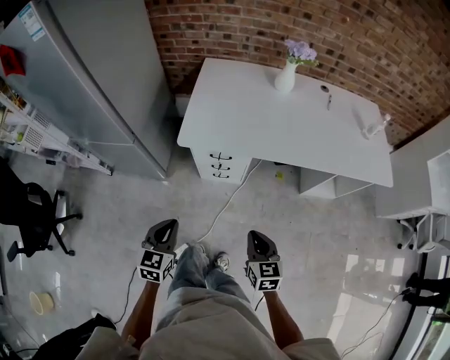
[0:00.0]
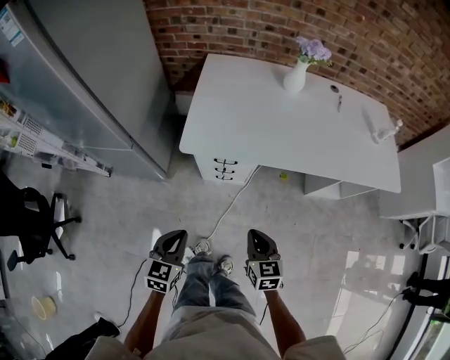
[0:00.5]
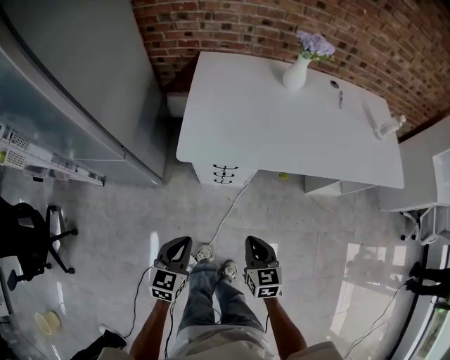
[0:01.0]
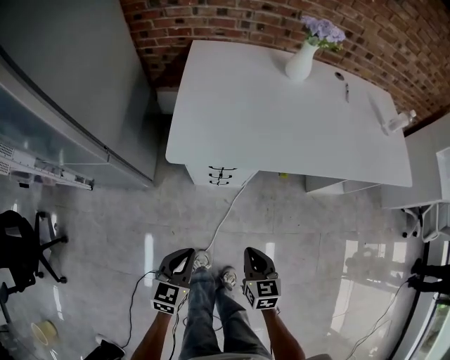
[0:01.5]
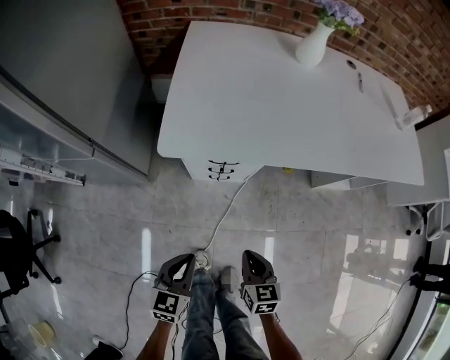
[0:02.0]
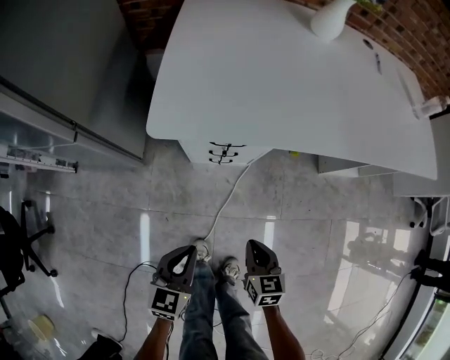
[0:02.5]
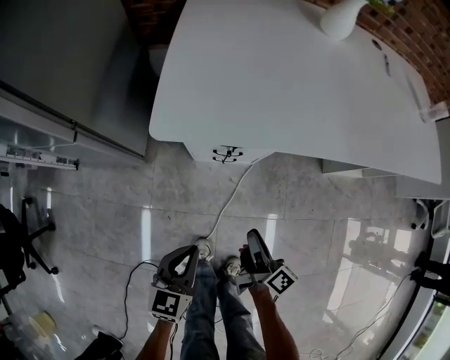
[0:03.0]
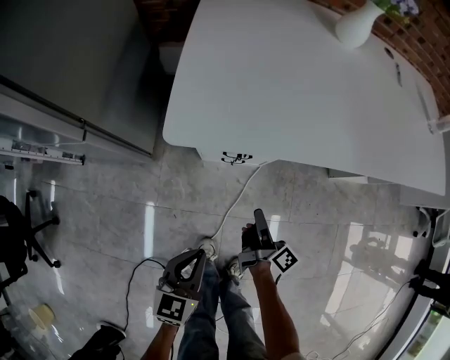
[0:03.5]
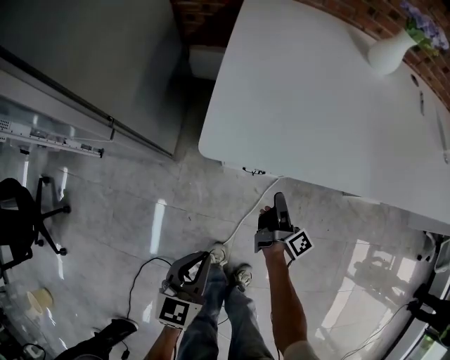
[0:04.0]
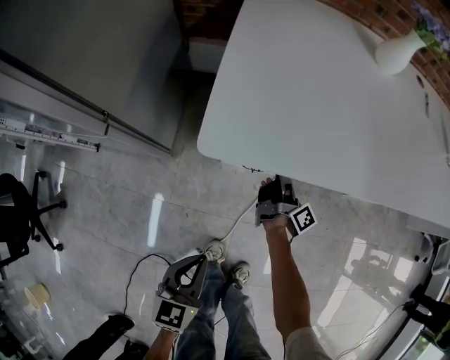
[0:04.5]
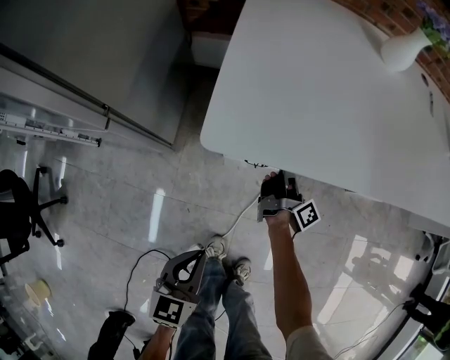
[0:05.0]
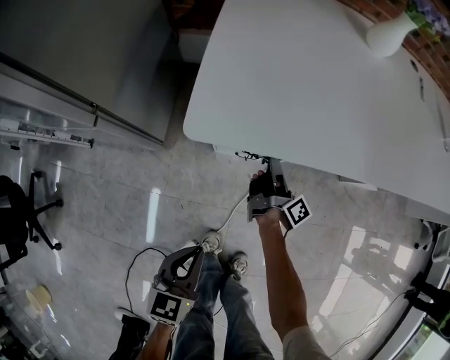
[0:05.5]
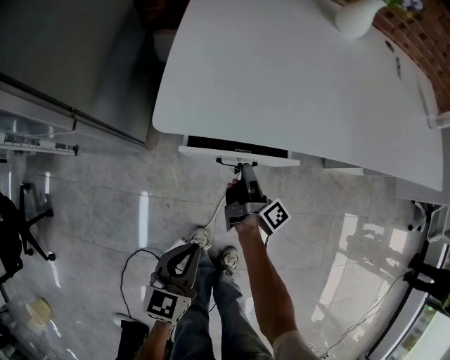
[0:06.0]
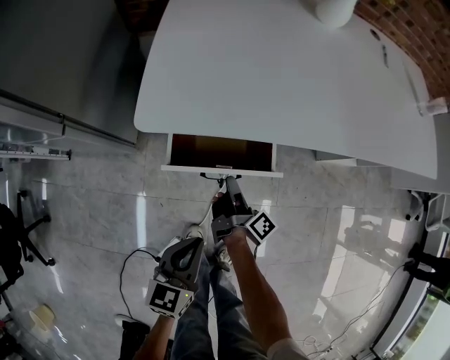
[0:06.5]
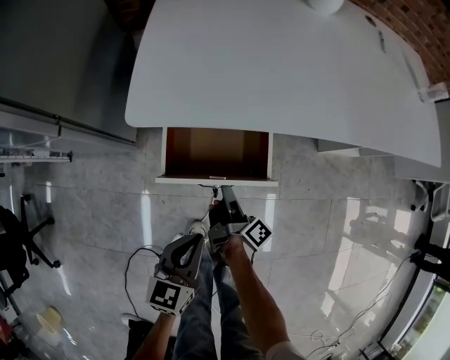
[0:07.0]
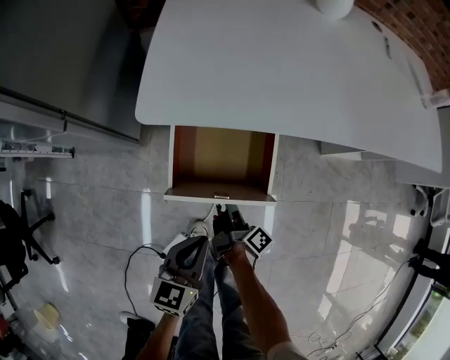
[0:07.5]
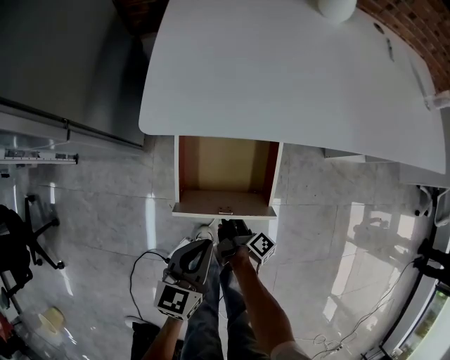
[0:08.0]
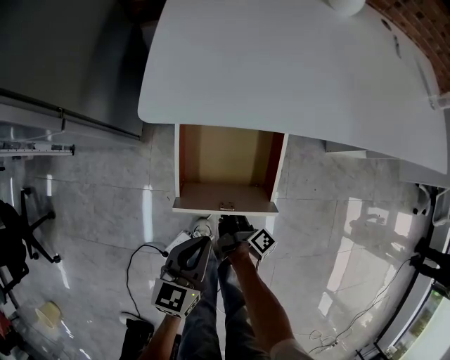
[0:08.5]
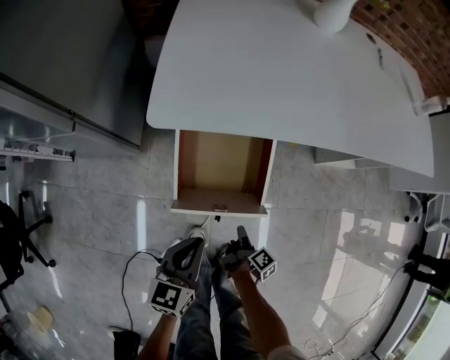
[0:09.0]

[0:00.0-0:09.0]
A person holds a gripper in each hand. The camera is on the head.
0:00.0 to 0:02.0: Both grippers travel together downward, about 20 cm.
0:02.0 to 0:04.5: The right gripper travels forward by roughly 30 cm, rotates around the line of its fingers by roughly 70 degrees, clockwise from behind, and opens up. The left gripper is displaced to the left by approximately 5 cm.
0:04.5 to 0:07.0: The right gripper heads backward, covering about 15 cm, and closes; the left gripper shifts roughly 10 cm to the right.
0:07.0 to 0:09.0: The right gripper is displaced backward, downward and to the right by about 20 cm, turns by about 30 degrees, and opens its fingers.

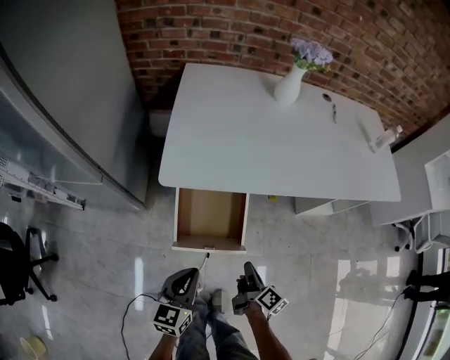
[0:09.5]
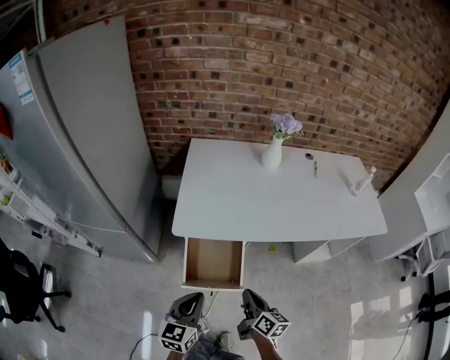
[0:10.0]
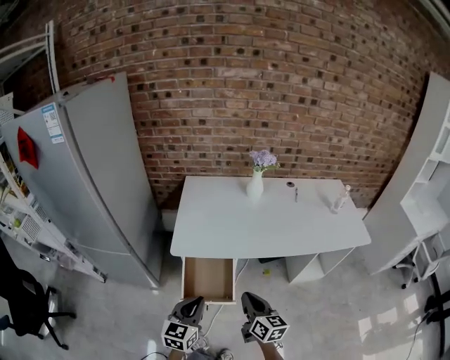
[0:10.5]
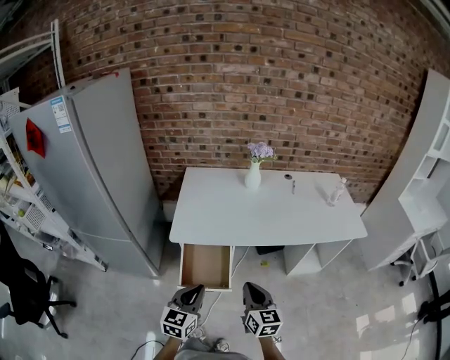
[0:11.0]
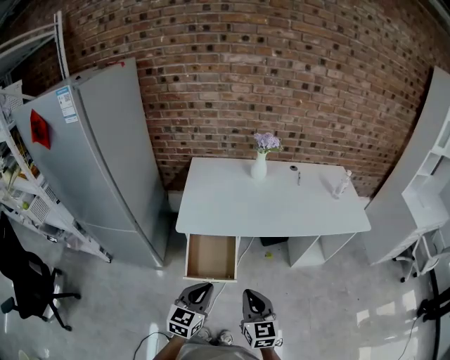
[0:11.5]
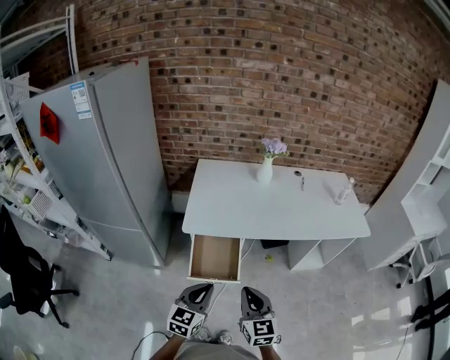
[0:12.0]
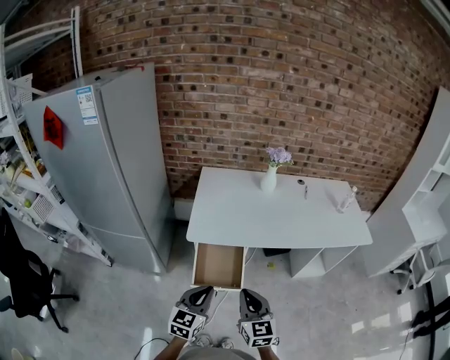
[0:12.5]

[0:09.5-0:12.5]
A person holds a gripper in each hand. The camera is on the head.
0:09.5 to 0:11.0: Both grippers move upward, approximately 25 cm. The right gripper rotates around the line of its fingers by some 60 degrees, counterclockwise from behind.
0:11.0 to 0:12.5: The right gripper shifts roughly 10 cm to the left. Meanwhile the left gripper ends up about 5 cm from where it was.

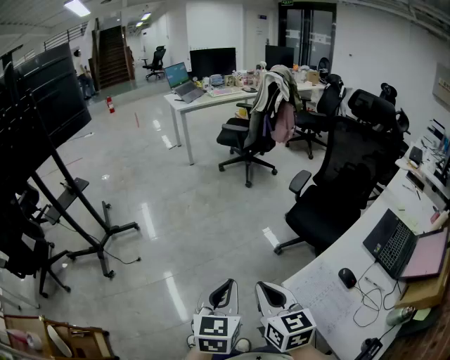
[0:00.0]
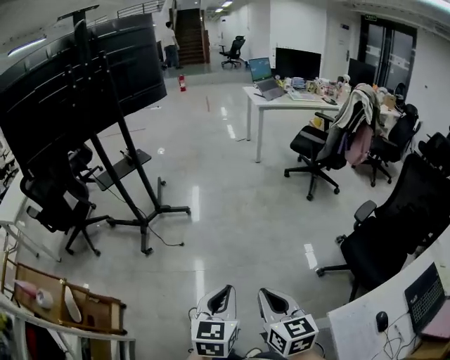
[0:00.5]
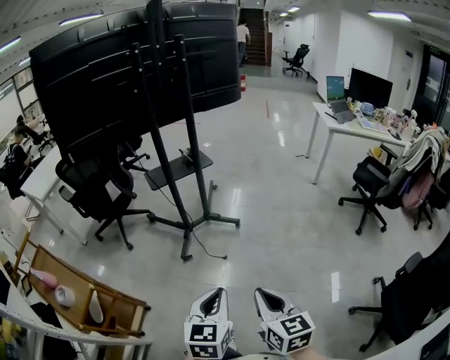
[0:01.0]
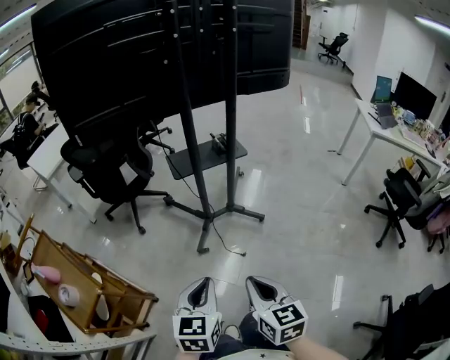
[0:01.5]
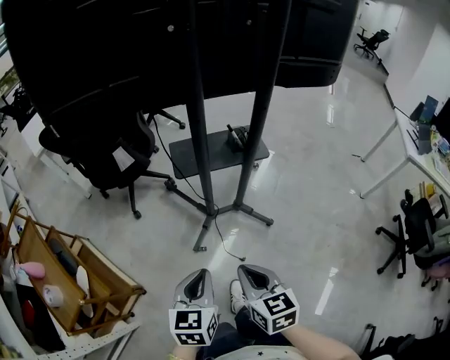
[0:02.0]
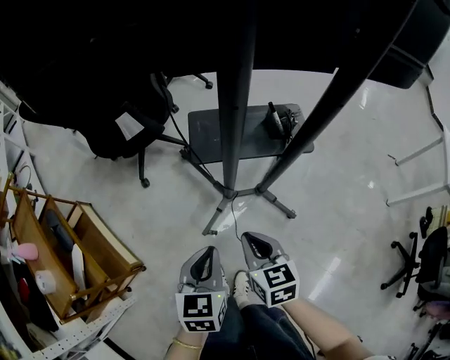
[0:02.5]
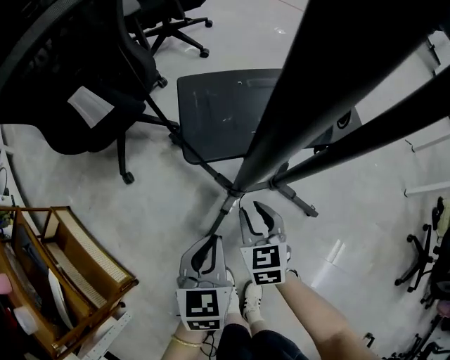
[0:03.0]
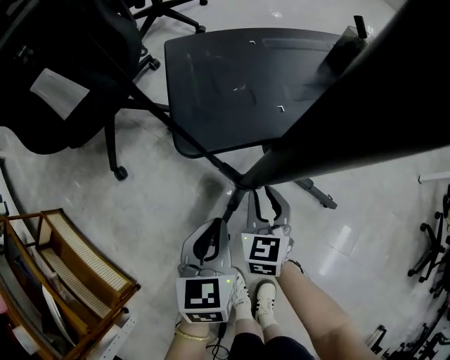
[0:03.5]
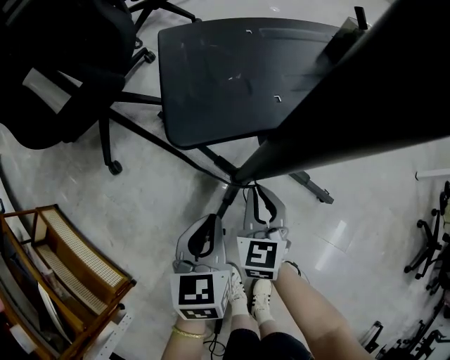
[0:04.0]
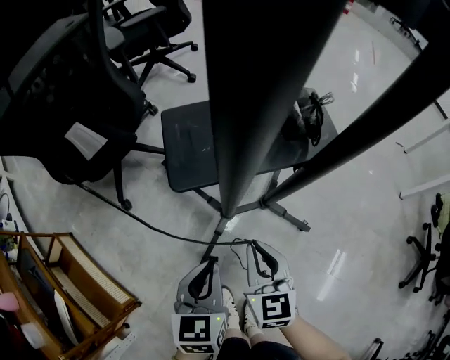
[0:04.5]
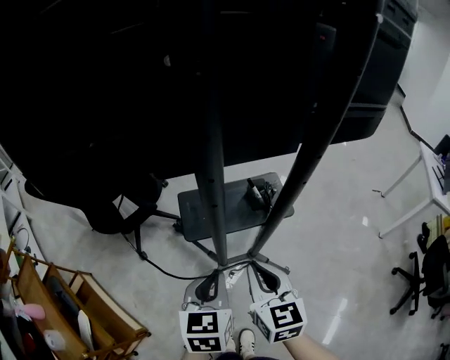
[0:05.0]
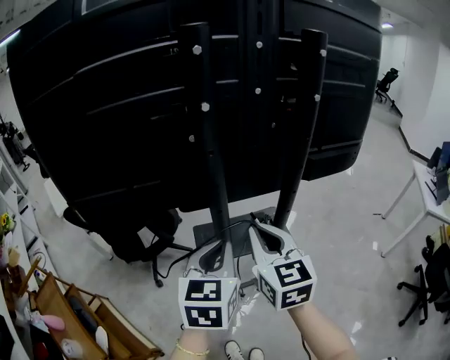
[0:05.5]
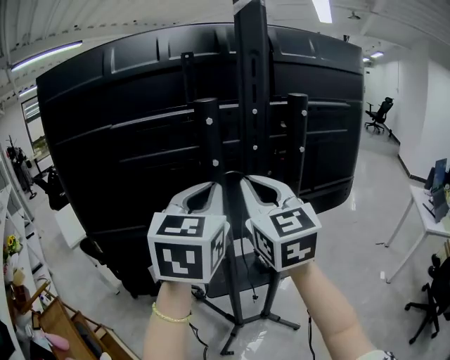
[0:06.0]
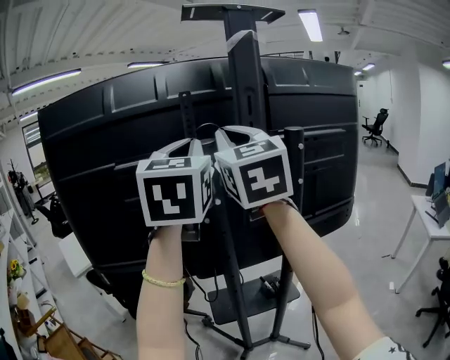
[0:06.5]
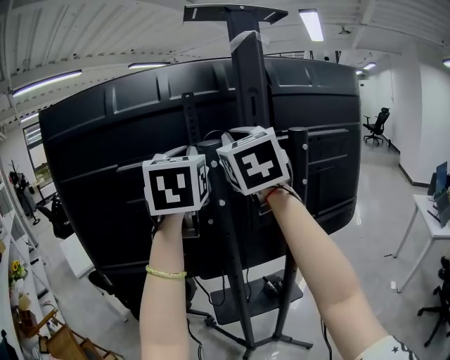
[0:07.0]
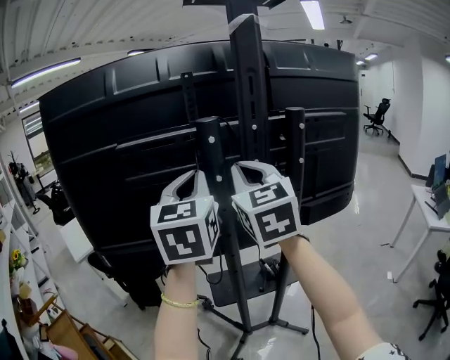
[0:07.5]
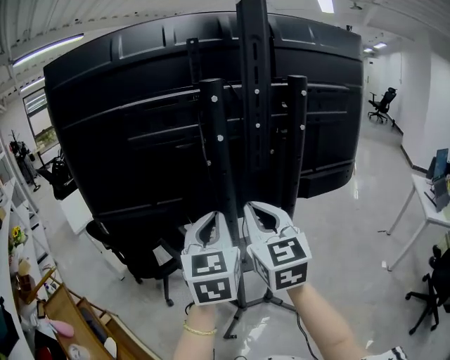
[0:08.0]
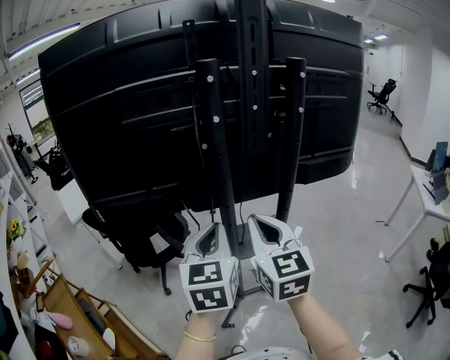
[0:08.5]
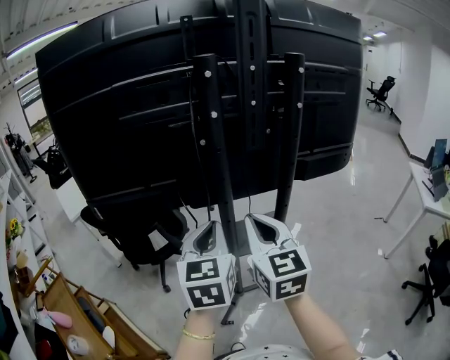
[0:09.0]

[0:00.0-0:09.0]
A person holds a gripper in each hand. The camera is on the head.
0:00.0 to 0:02.0: The pair of grippers is taken roughly 90 cm. The right gripper changes its angle by roughly 60 degrees; the left gripper swivels about 60 degrees.
0:02.0 to 0:04.5: The two grippers go about 35 cm forward and downward. The right gripper opens, then closes once more.
0:04.5 to 0:07.0: The grippers both shift upward by some 90 cm. The left gripper tilts its fingers about 40 degrees upward. The right gripper turns by roughly 40 degrees.
0:07.0 to 0:09.0: Both grippers move downward and backward, about 35 cm. The right gripper changes its angle by approximately 20 degrees.

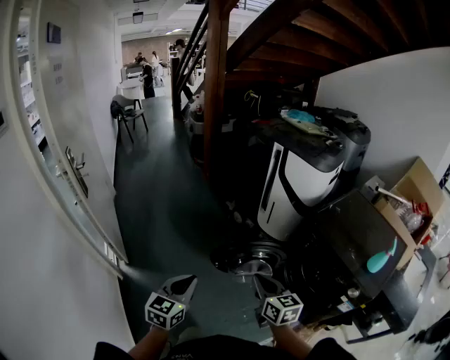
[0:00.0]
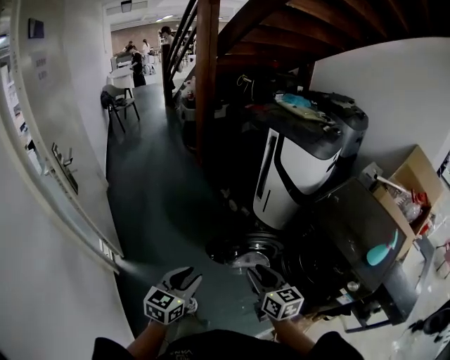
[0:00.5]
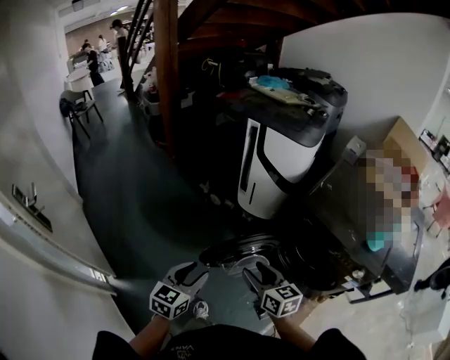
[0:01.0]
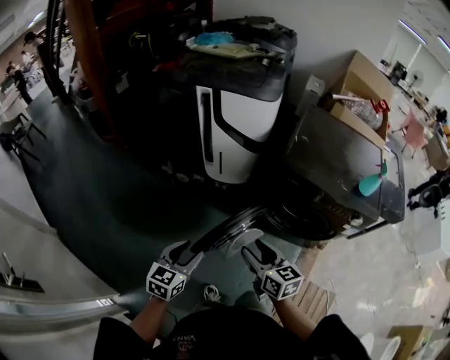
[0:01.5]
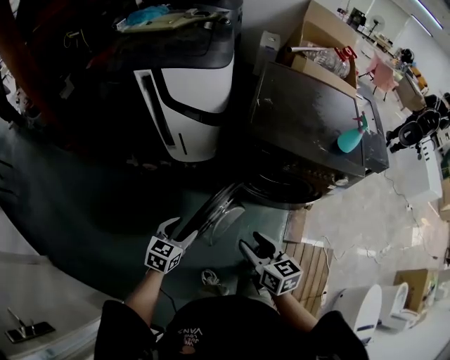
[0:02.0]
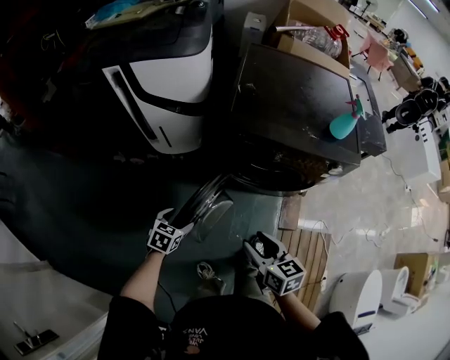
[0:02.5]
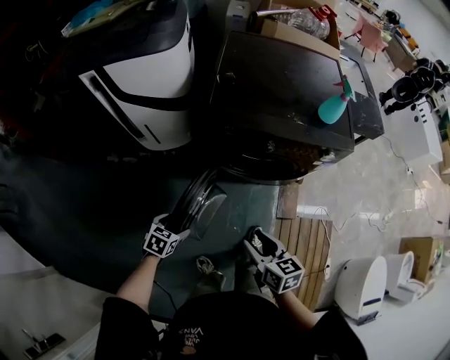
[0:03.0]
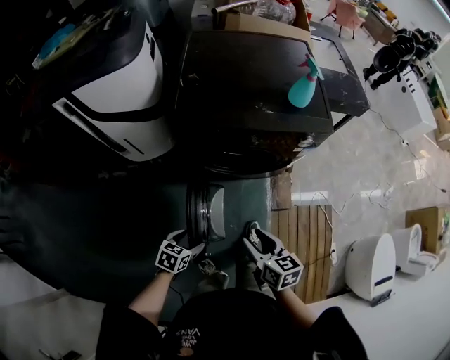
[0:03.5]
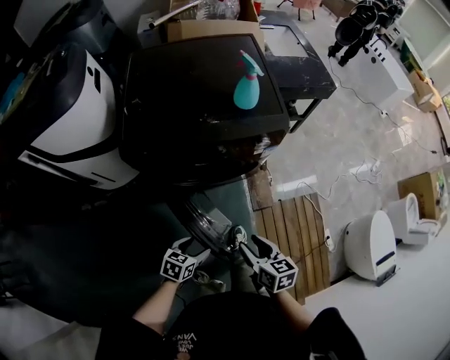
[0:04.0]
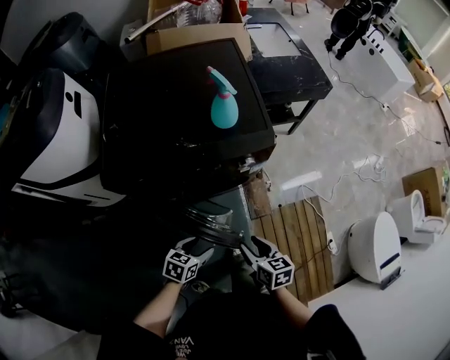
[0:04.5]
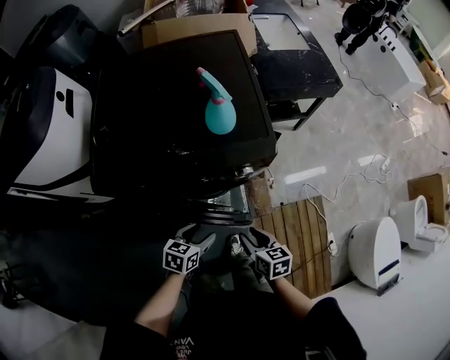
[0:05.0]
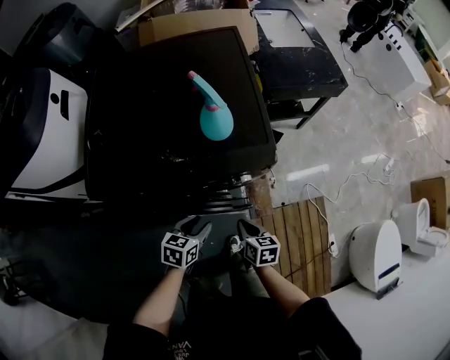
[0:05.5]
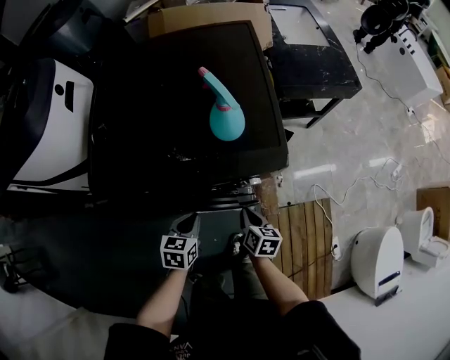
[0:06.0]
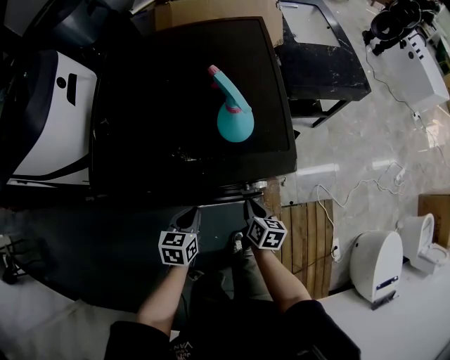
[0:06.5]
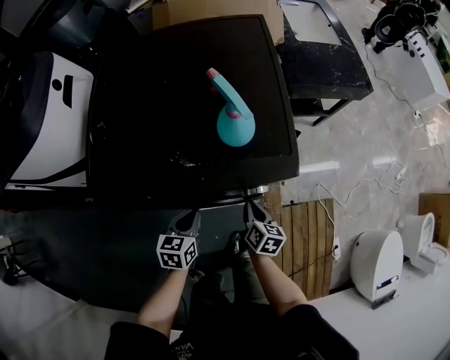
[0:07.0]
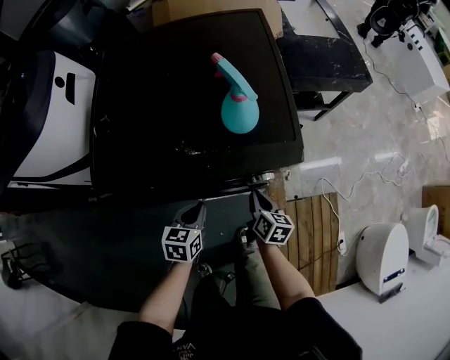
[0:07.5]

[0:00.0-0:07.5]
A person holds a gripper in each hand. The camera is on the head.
0:00.0 to 0:02.0: The right gripper changes place by roughly 20 cm, changes its angle by roughly 50 degrees, and opens. The left gripper moves approximately 40 cm, rotates approximately 60 degrees, and opens up.
0:02.0 to 0:04.0: The right gripper changes place by approximately 30 cm, and rotates approximately 30 degrees. Meanwhile the left gripper shifts by about 35 cm, and changes its angle by approximately 30 degrees.
0:04.0 to 0:05.5: The left gripper travels forward by roughly 25 cm, and closes its fingers. The right gripper heads forward and downward, covering some 25 cm, and closes up.
0:05.5 to 0:07.5: The right gripper goes about 10 cm forward. The left gripper shifts about 5 cm to the left, and closes up.
